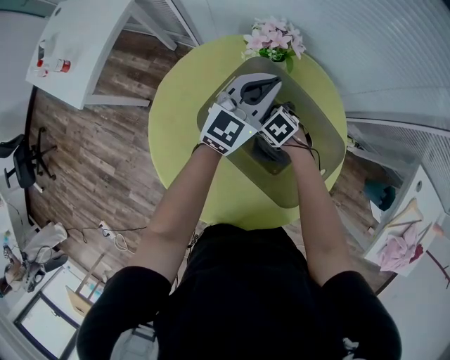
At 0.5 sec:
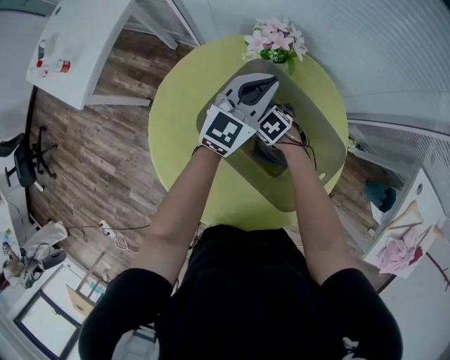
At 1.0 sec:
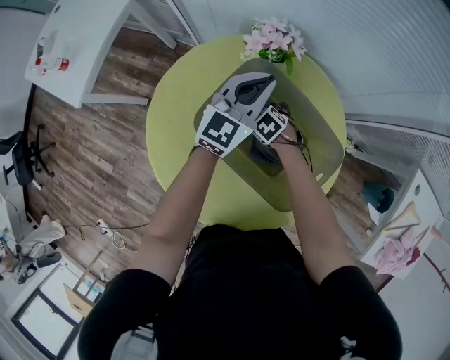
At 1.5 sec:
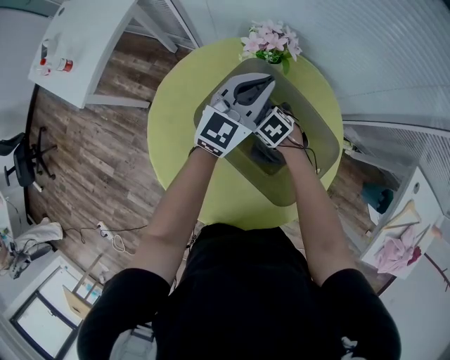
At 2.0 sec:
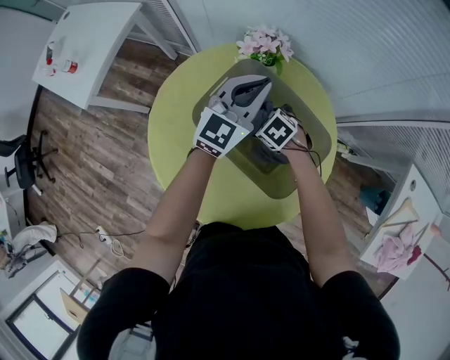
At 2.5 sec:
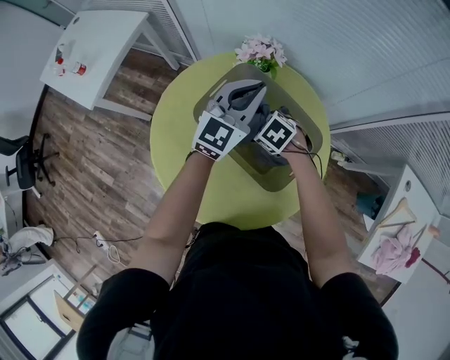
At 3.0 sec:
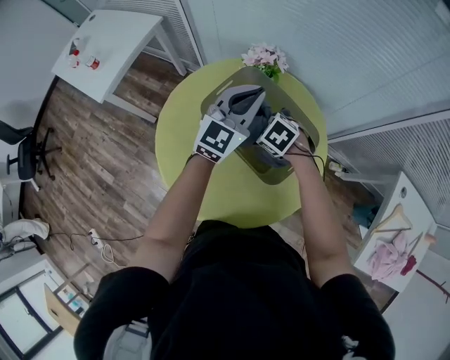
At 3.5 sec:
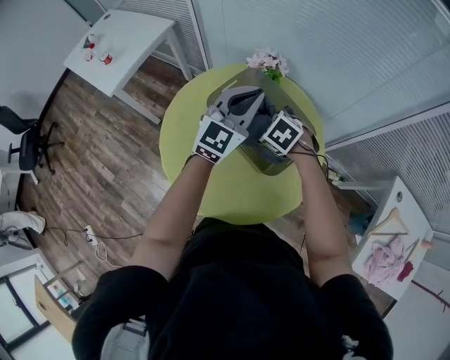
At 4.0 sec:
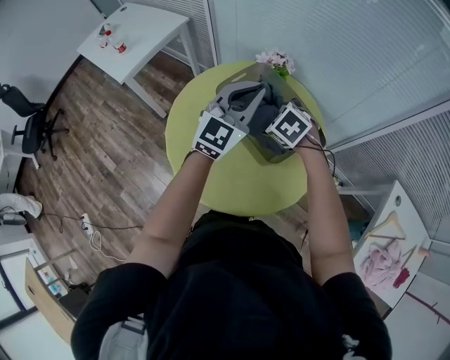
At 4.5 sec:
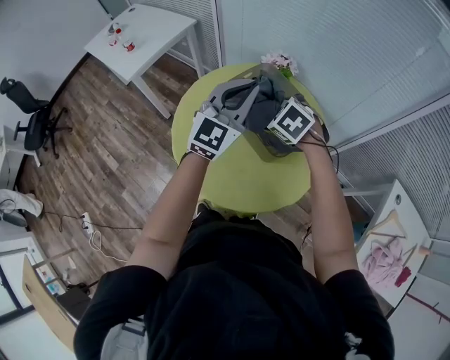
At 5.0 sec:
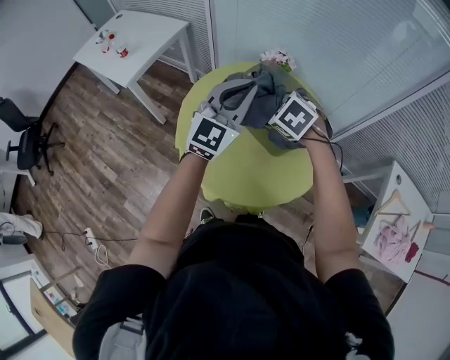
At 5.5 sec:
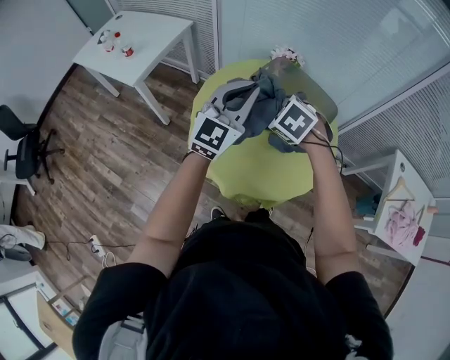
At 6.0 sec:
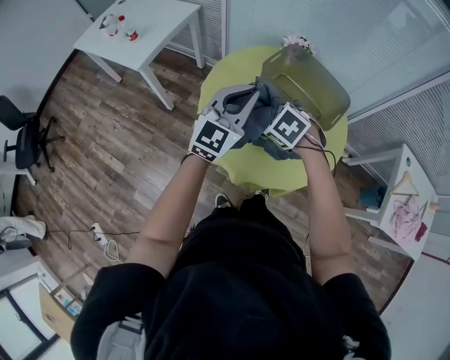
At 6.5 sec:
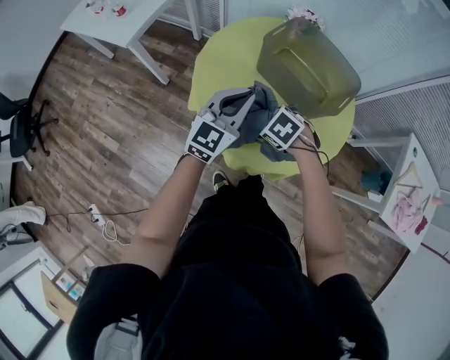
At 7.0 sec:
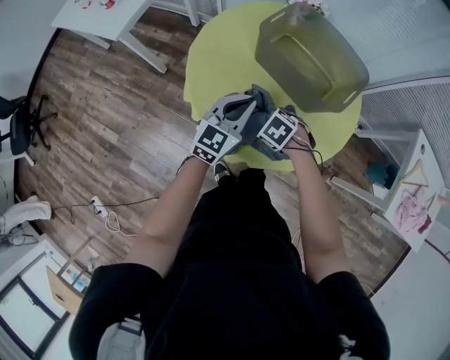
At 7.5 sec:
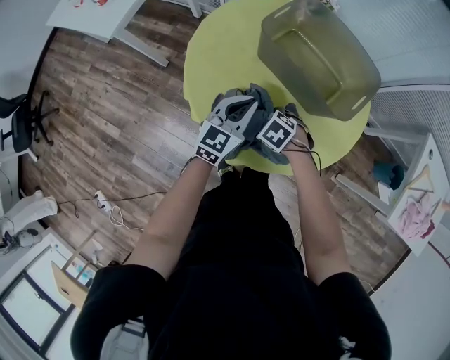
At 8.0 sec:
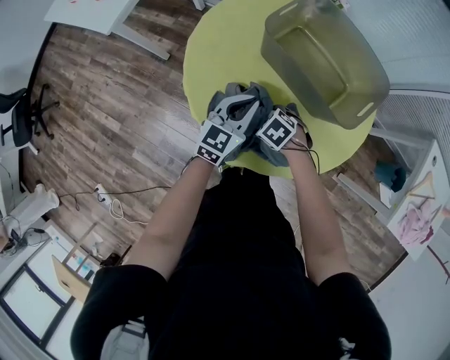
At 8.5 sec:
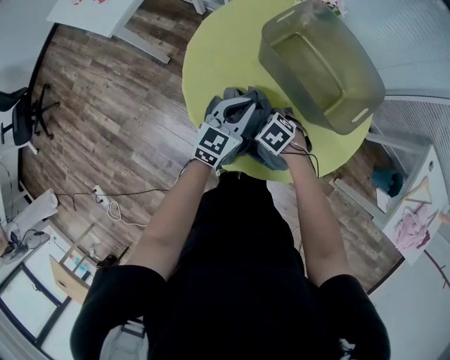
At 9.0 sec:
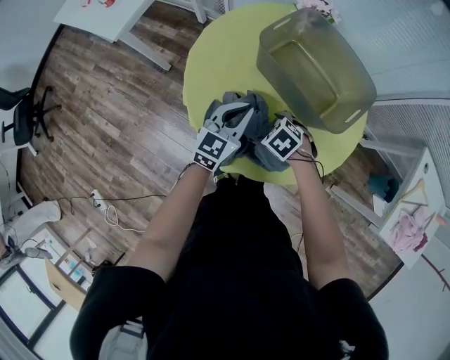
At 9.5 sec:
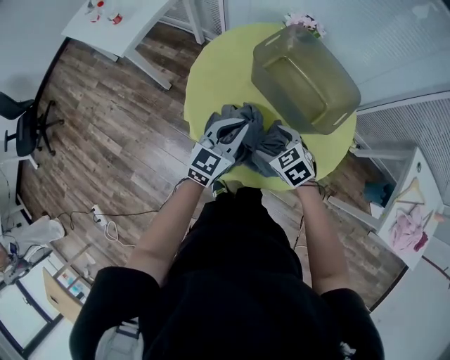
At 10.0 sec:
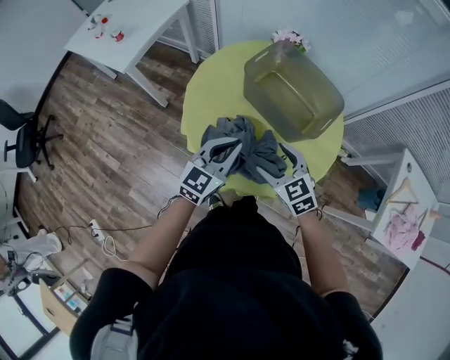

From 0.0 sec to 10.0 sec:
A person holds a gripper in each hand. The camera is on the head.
From 0.0 sec to 2.0 sec: The right gripper heads upward, covering about 5 cm. Meanwhile the left gripper moves some 5 cm.
From 2.0 sec to 4.0 sec: The right gripper moves upward and backward, some 25 cm. Meanwhile the left gripper heads backward, upward and to the left, covering some 20 cm.
From 4.0 sec to 6.0 sec: Both grippers travel together to the left and backward, about 25 cm.
From 6.0 sec to 8.0 sec: Both grippers move downward, approximately 25 cm. The left gripper swivels approximately 30 degrees.
From 8.0 sec to 10.0 sec: The right gripper travels upward by approximately 25 cm, and tilts its fingers some 30 degrees upward. The left gripper shifts approximately 15 cm upward.

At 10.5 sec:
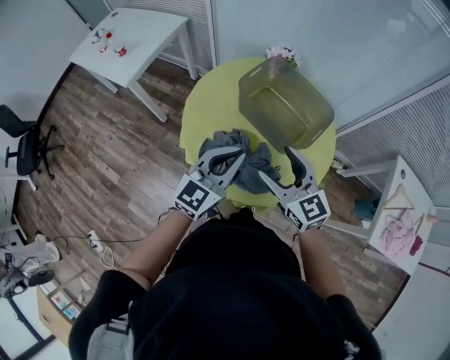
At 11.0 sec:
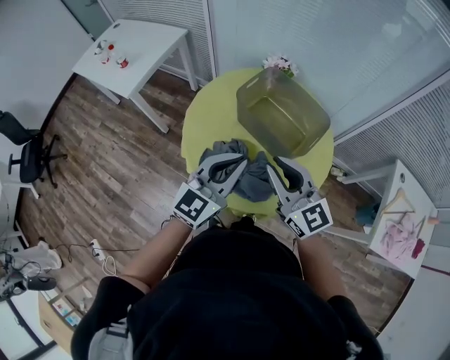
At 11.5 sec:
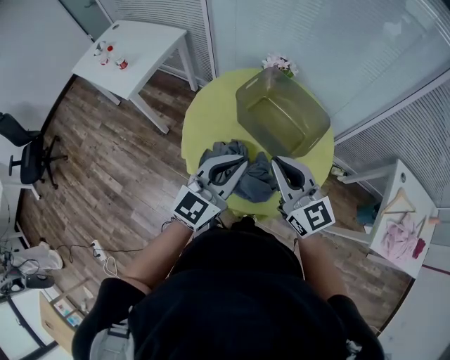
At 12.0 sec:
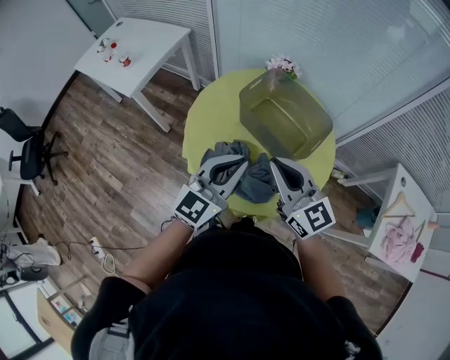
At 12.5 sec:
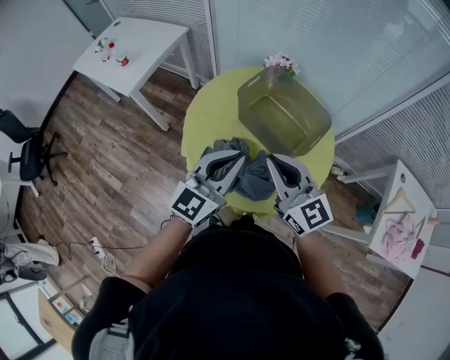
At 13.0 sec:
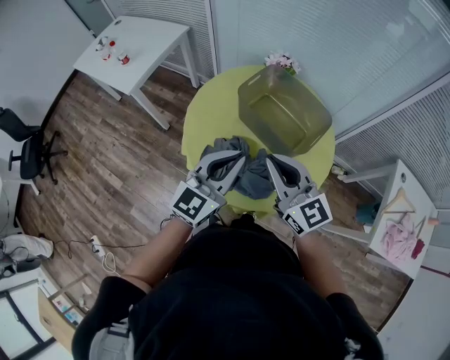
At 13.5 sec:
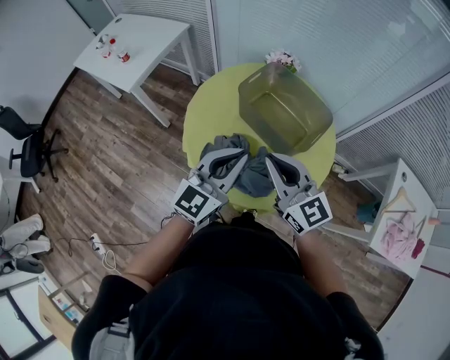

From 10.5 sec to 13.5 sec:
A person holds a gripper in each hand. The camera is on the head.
From 10.5 sec to 12.0 sec: The right gripper goes about 5 cm upward, and closes up.
From 12.0 sec to 13.5 sec: Both grippers stay about where they are.

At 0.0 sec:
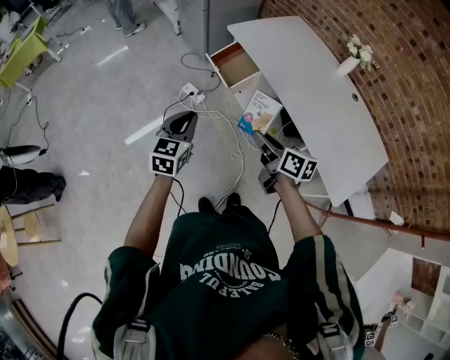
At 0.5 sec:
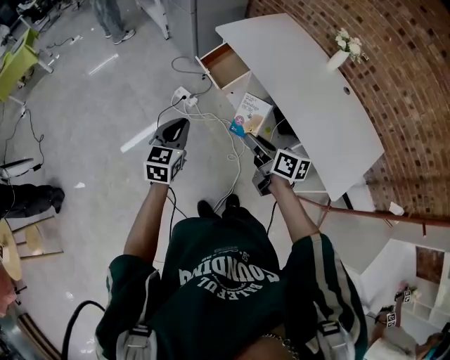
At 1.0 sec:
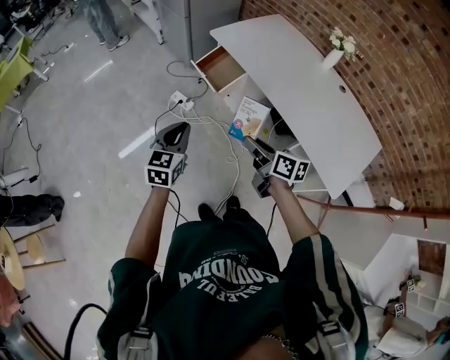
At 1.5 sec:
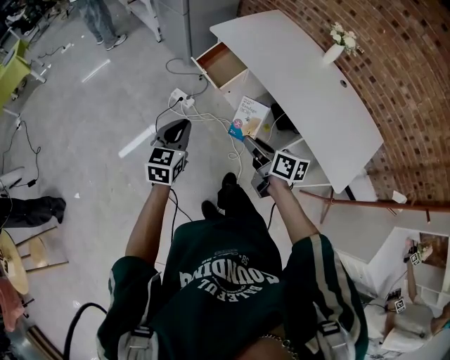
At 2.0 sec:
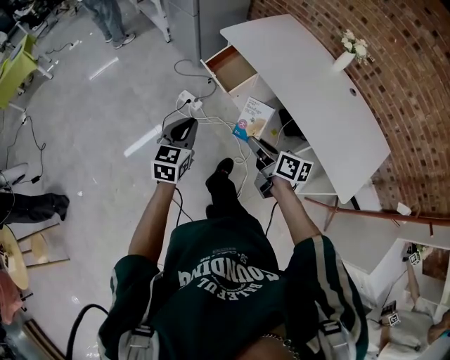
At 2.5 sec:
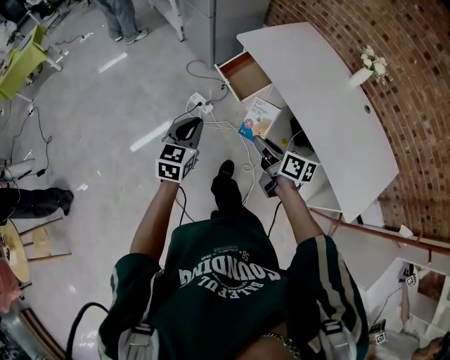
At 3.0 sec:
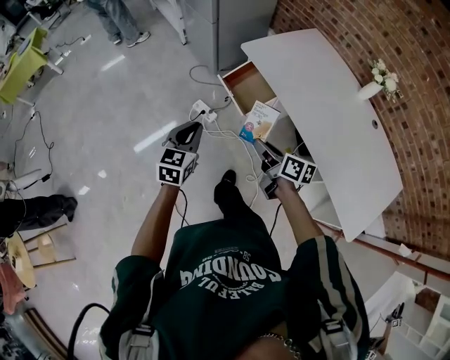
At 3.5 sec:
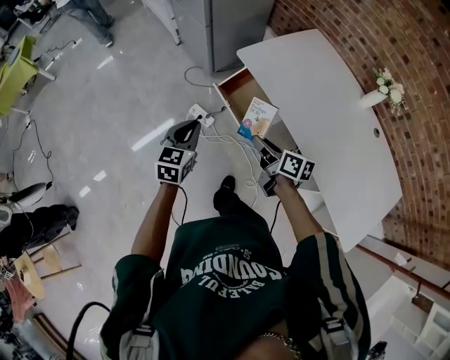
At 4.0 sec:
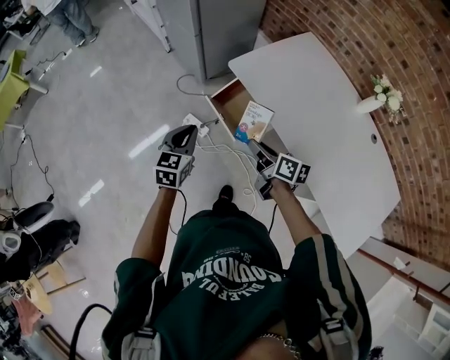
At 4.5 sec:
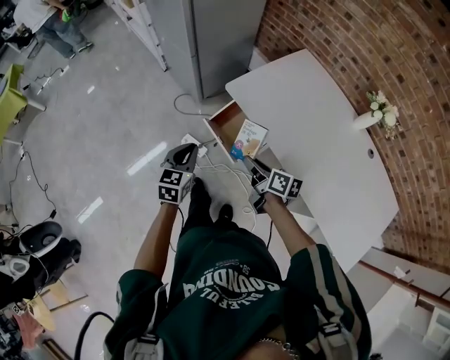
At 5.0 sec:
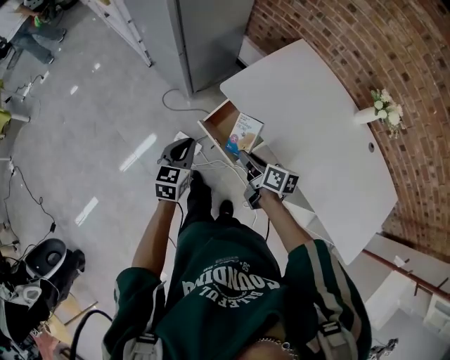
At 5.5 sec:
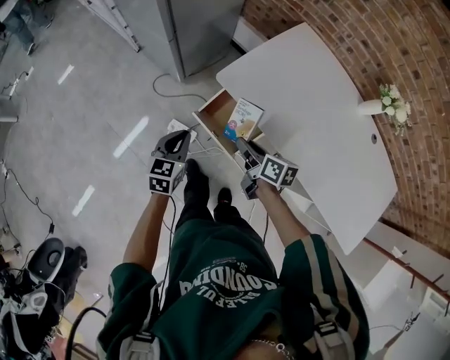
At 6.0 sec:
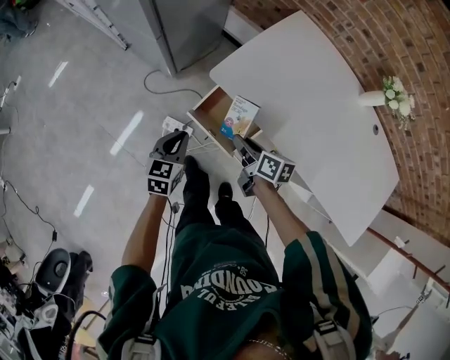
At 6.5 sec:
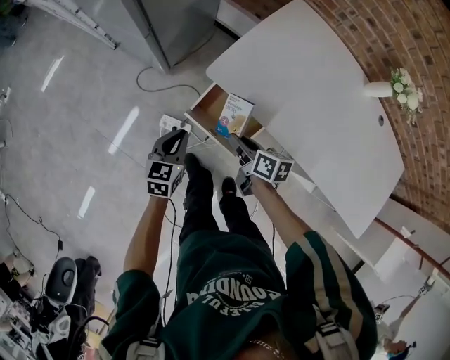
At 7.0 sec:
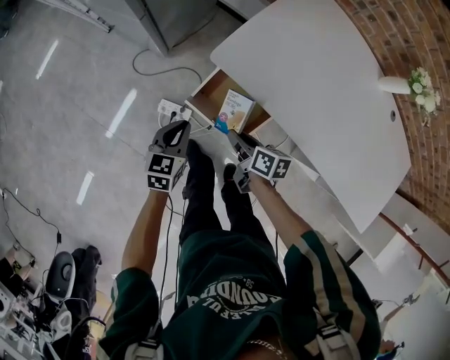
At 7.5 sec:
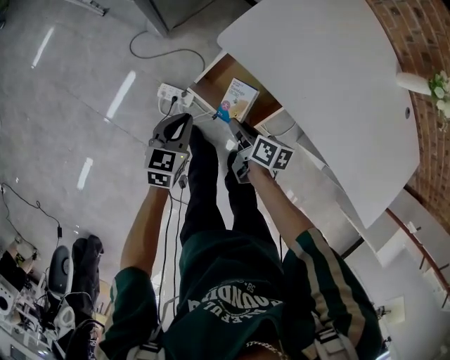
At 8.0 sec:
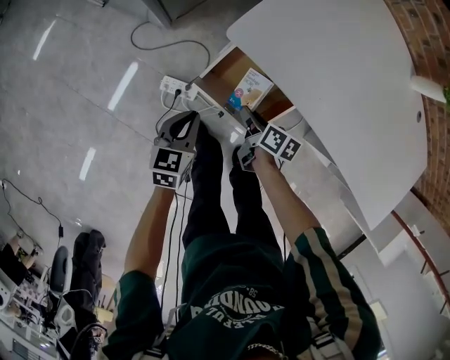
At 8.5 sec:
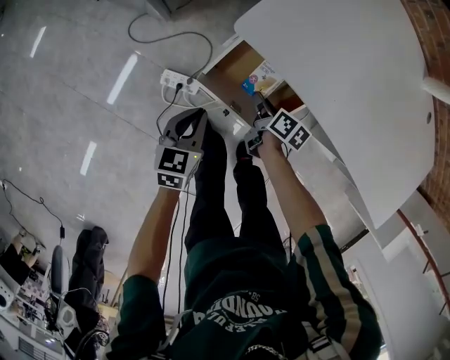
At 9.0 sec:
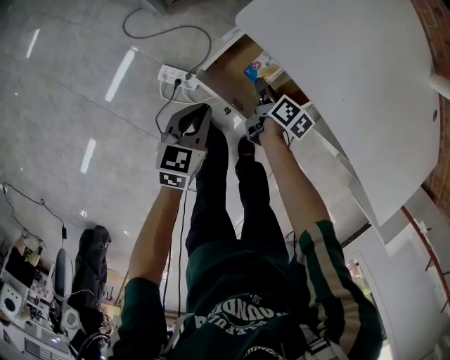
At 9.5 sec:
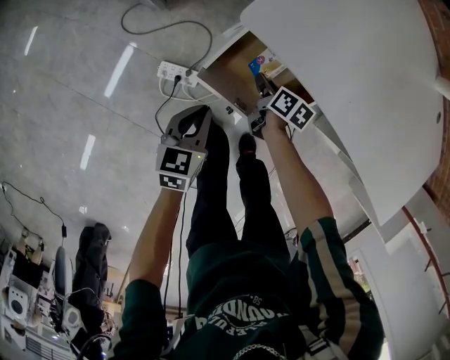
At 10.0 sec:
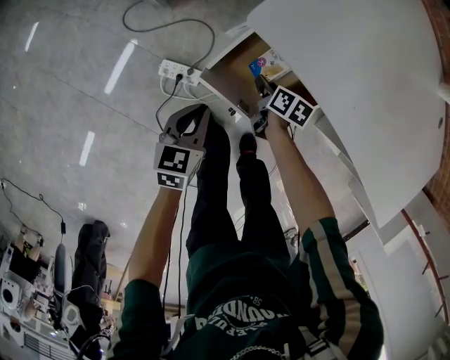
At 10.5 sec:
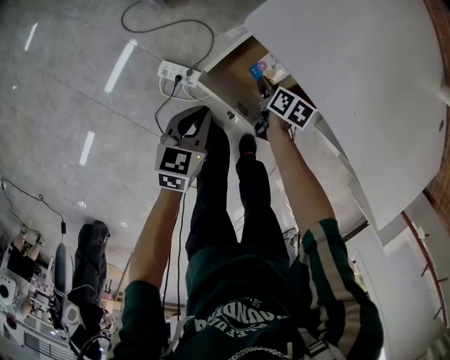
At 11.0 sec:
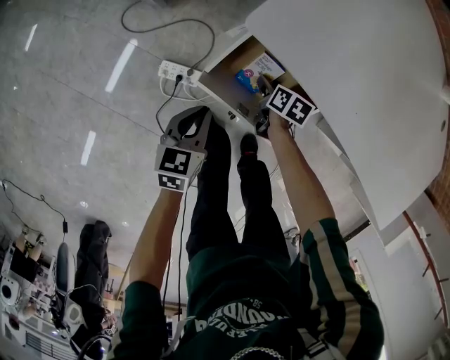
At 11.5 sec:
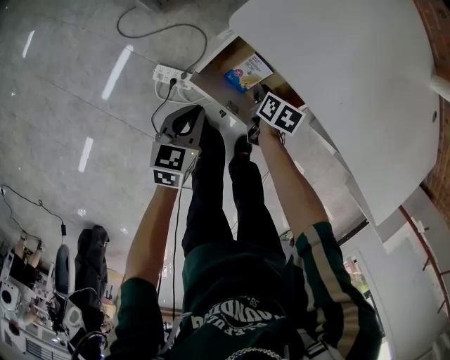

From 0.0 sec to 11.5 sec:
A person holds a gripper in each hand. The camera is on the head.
From 0.0 sec to 2.0 sec: The right gripper changes place by about 5 cm.
From 2.0 sec to 4.0 sec: The two grippers go roughly 30 cm forward.
From 4.0 sec to 6.0 sec: The two grippers go some 20 cm forward and downward.
From 6.0 sec to 7.5 sec: Both grippers travel together downward, roughly 15 cm.
From 7.5 sec to 9.5 sec: The right gripper is displaced downward and forward by about 20 cm, while the left gripper travels downward by approximately 10 cm.
From 9.5 sec to 11.5 sec: The right gripper opens and closes again.

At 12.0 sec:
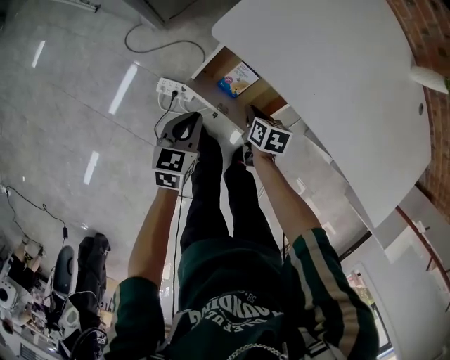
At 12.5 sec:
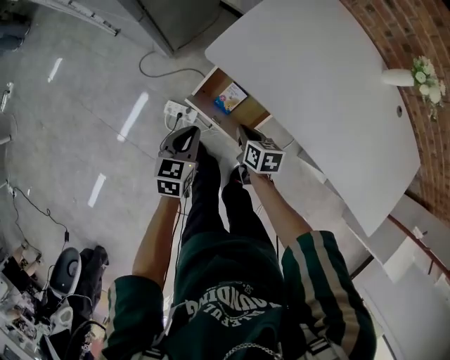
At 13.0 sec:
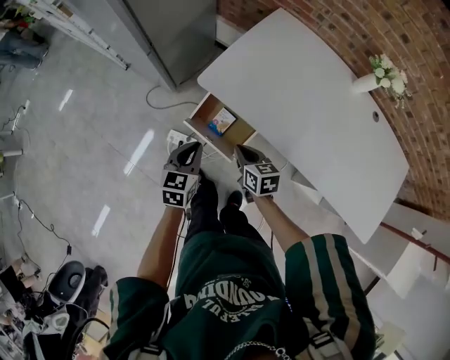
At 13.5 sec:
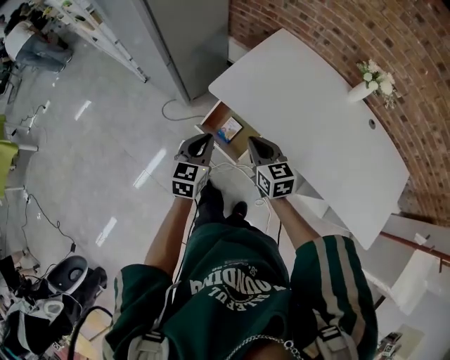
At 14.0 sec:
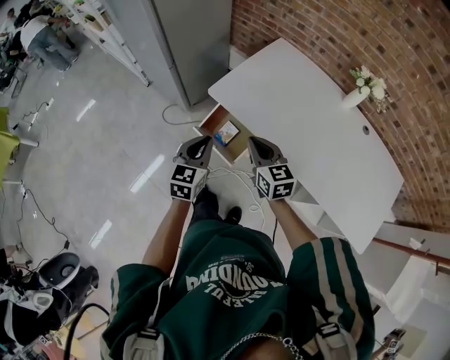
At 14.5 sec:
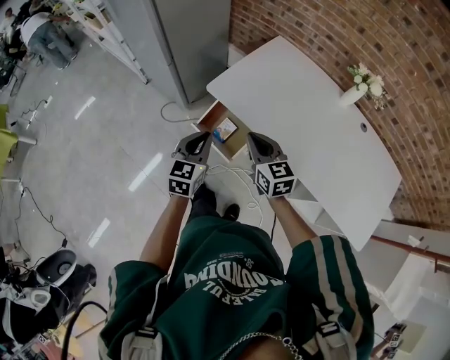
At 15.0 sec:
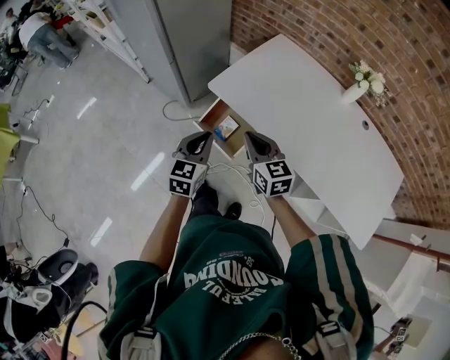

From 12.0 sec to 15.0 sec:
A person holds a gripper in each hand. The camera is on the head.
From 12.0 sec to 13.5 sec: The grippers both shift upward by about 30 cm. The right gripper points its fingers about 40 degrees further upward, while the left gripper rotates about 20 degrees.
From 13.5 sec to 15.0 sec: The left gripper changes place by roughly 5 cm, while the right gripper changes place by roughly 5 cm.
